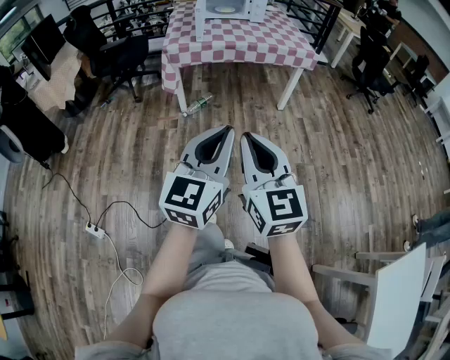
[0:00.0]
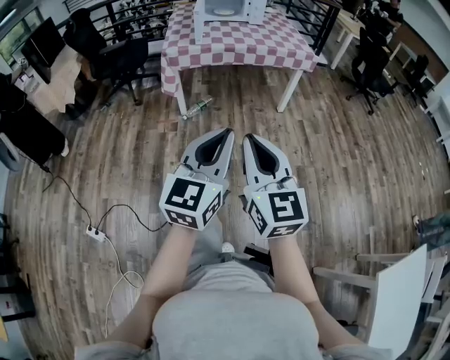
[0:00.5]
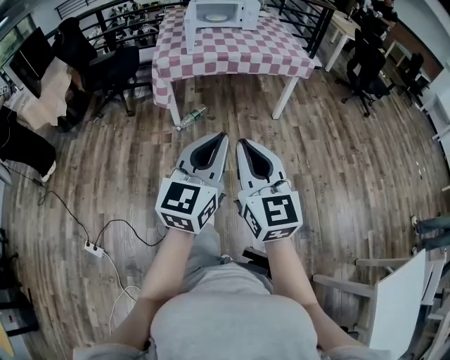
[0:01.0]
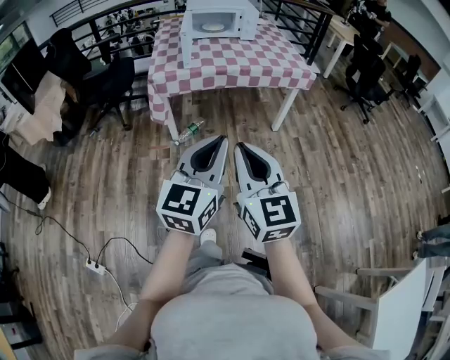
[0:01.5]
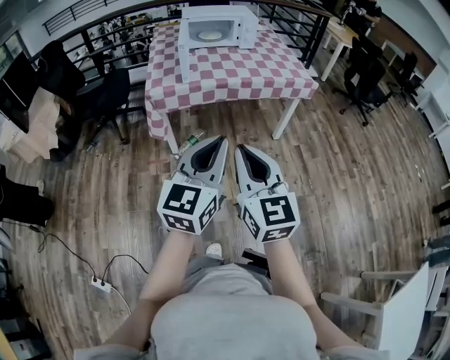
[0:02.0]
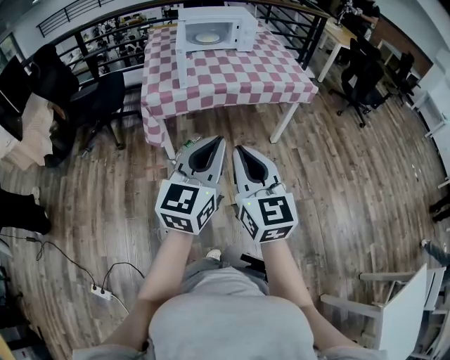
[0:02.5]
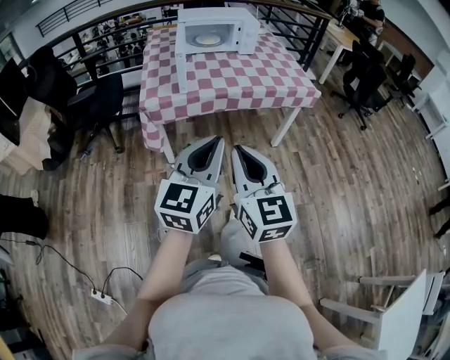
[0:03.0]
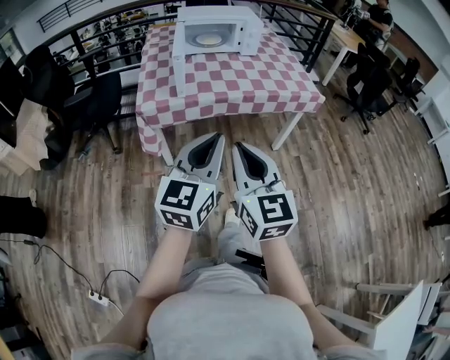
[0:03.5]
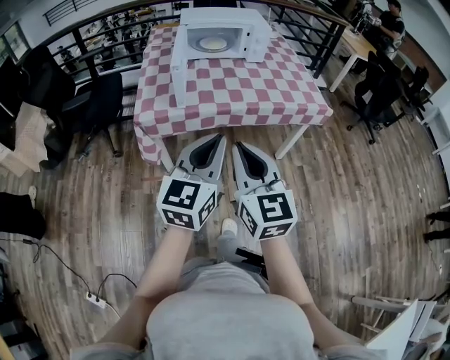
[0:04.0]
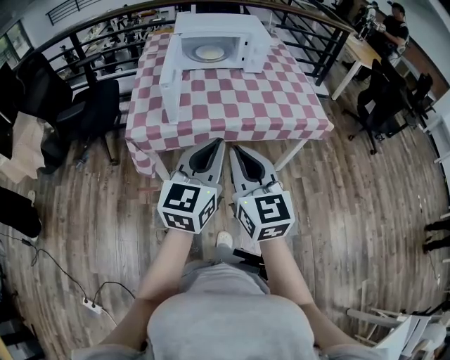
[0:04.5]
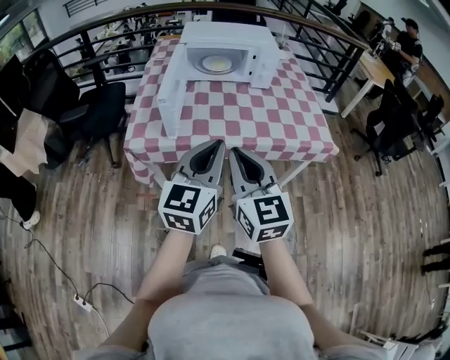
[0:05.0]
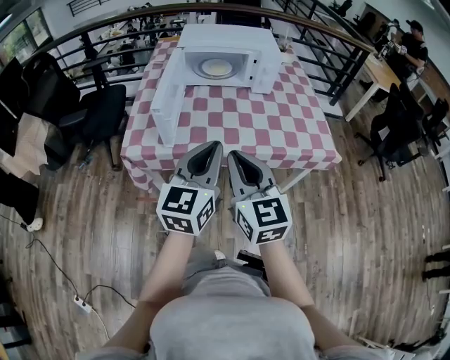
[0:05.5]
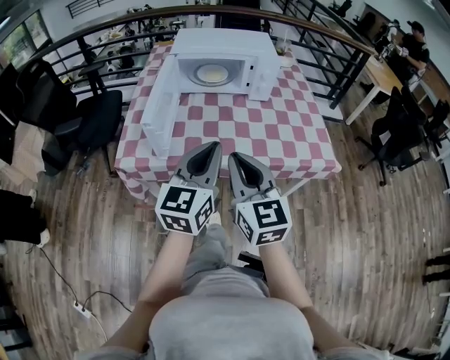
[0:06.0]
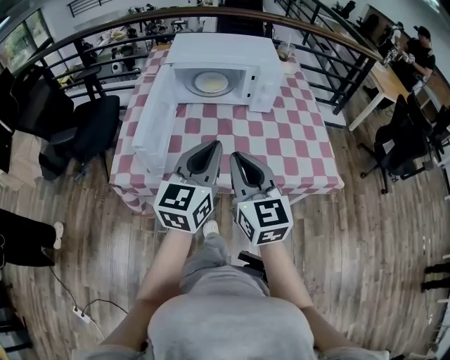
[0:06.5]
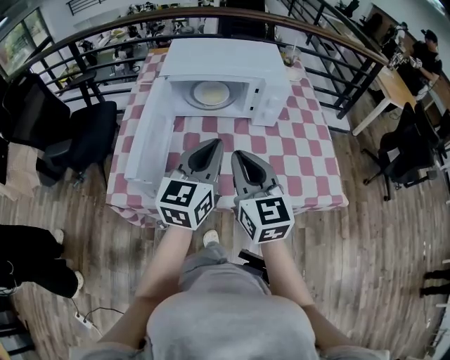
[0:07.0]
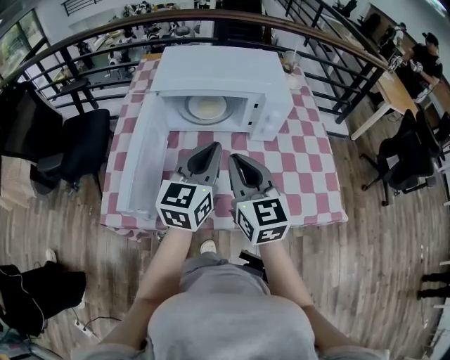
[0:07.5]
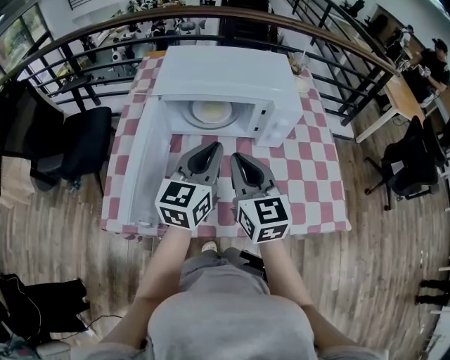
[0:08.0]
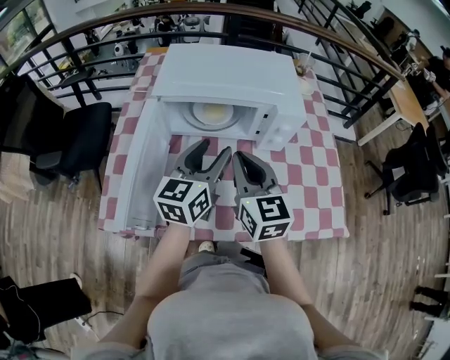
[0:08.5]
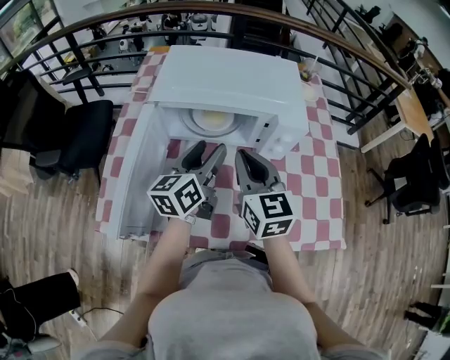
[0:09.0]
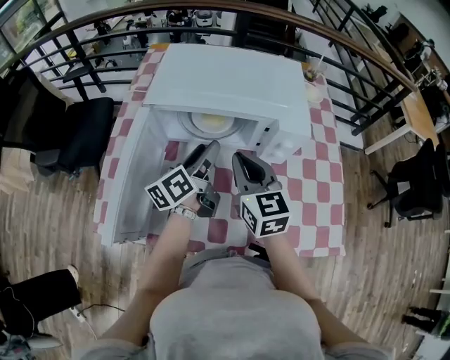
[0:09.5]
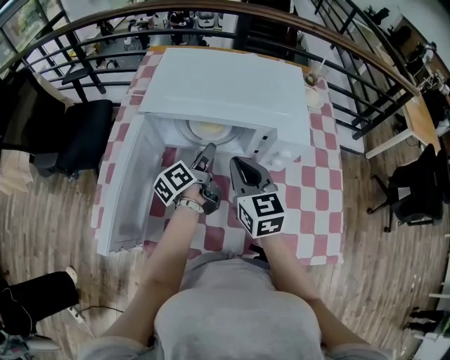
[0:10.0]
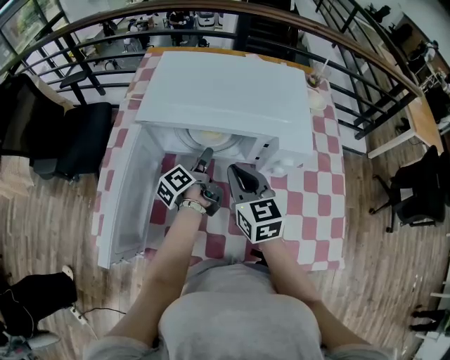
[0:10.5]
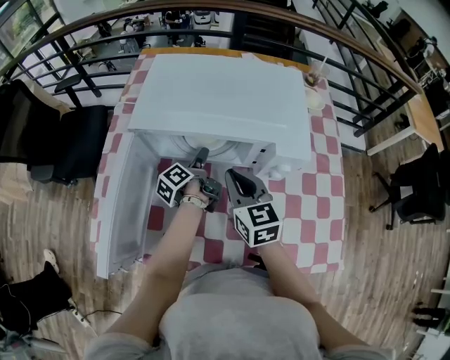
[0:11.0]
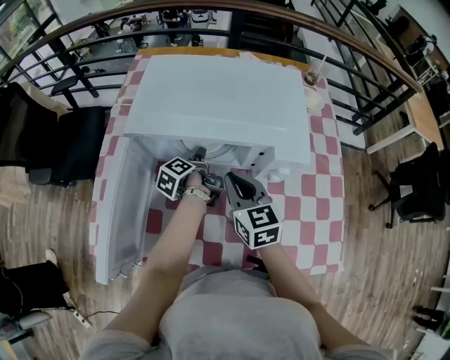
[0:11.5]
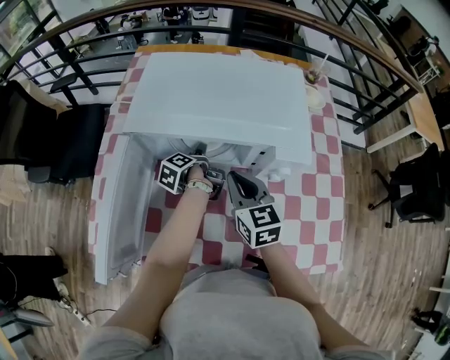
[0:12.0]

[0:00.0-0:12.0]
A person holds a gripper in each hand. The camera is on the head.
0.0 to 2.0 s: Both grippers travel together forward, about 25 cm.
2.0 to 4.0 s: Both grippers travel together forward, approximately 25 cm.
4.0 to 6.0 s: The grippers both shift forward by approximately 25 cm.
6.0 to 8.0 s: Both grippers travel together forward, approximately 30 cm.
8.0 to 10.0 s: The right gripper shifts about 15 cm forward and downward. The left gripper is displaced downward and forward by approximately 20 cm, rolls counterclockwise, seen from behind, by approximately 60 degrees, and opens.
10.0 to 12.0 s: The right gripper moves some 5 cm, while the left gripper travels downward and forward by about 10 cm, and swivels roughly 30 degrees.

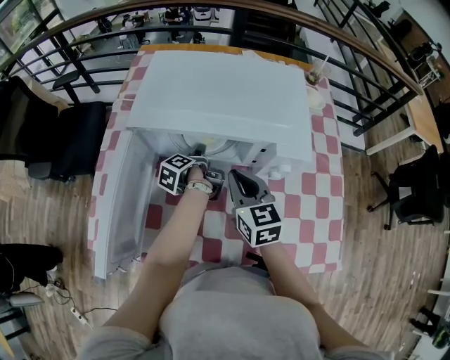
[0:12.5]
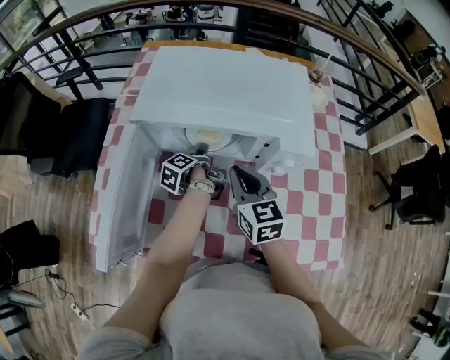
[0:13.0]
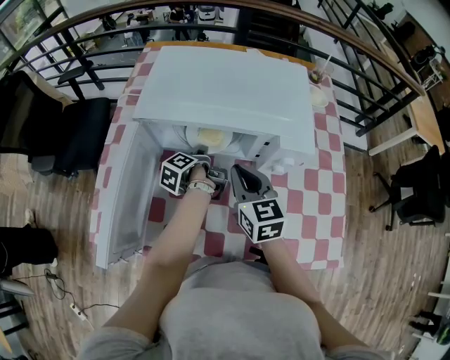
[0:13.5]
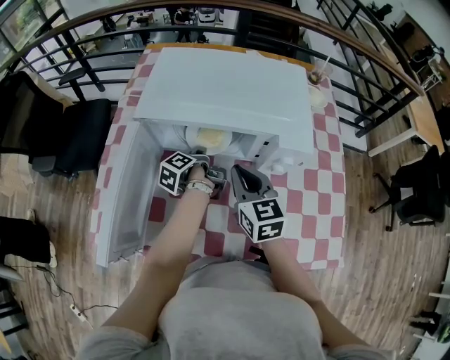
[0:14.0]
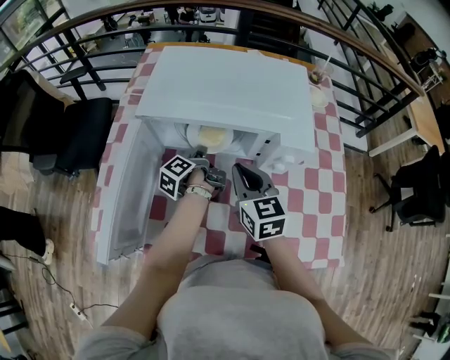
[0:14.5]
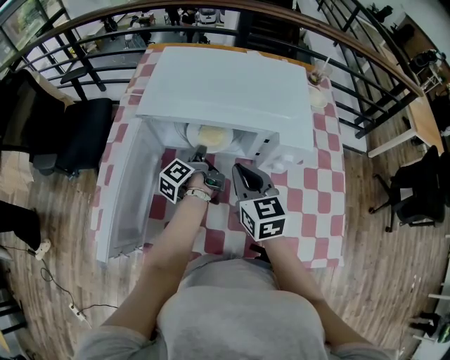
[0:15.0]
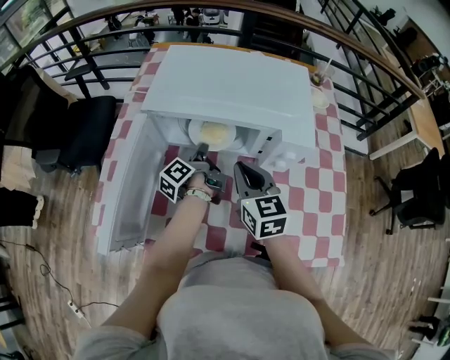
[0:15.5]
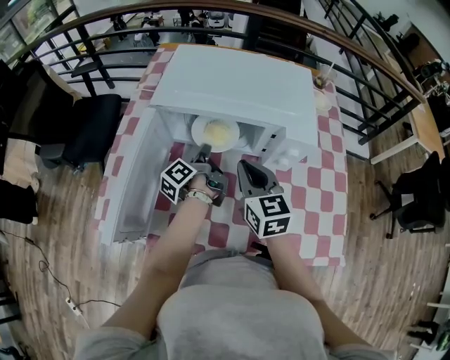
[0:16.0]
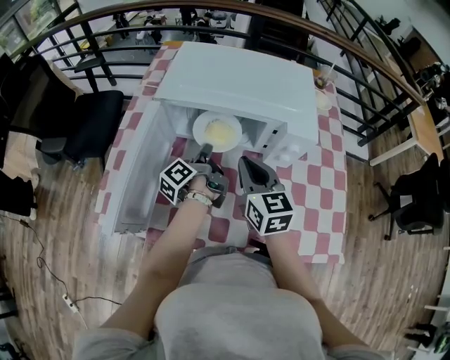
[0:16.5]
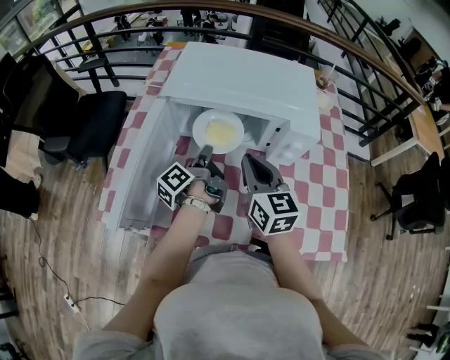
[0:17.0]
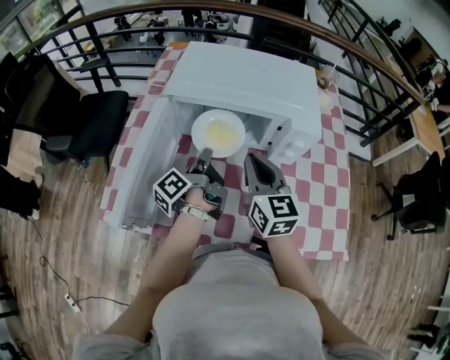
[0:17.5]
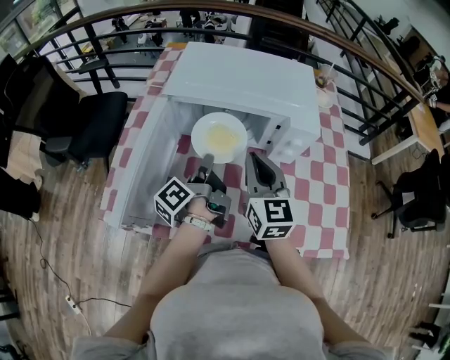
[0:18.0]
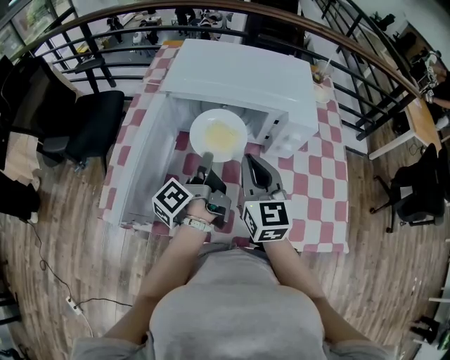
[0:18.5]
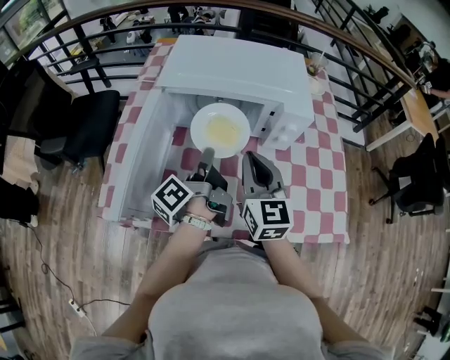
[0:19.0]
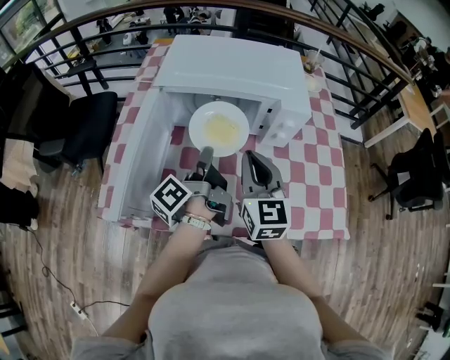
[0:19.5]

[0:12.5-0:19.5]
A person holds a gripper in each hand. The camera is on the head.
12.5 to 14.5 s: The left gripper closes.
14.5 to 16.0 s: The left gripper changes place by approximately 5 cm.
16.0 to 17.5 s: The left gripper moves backward and upward, about 10 cm.
17.5 to 19.5 s: The right gripper changes place by some 5 cm; the left gripper moves backward, some 5 cm.

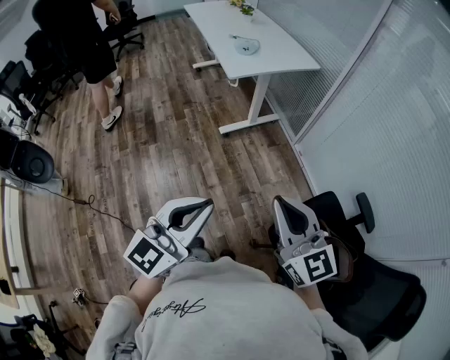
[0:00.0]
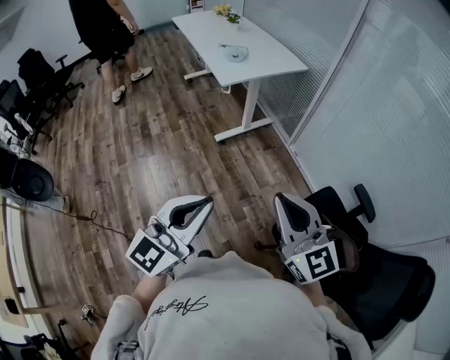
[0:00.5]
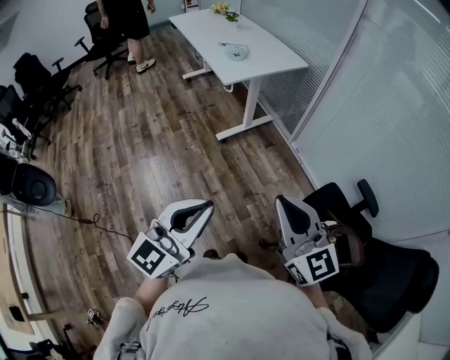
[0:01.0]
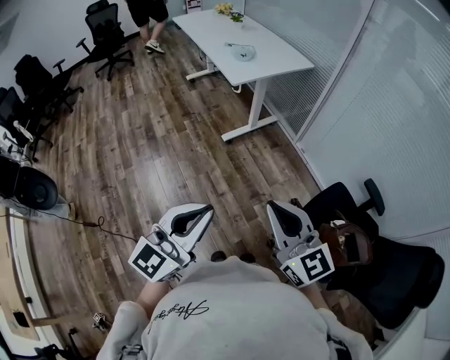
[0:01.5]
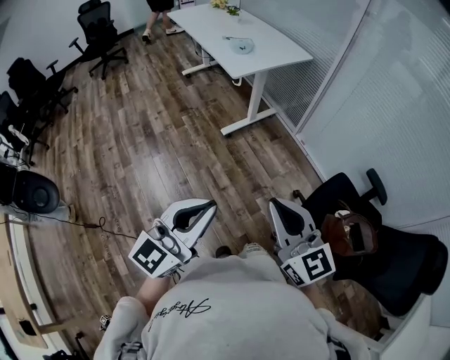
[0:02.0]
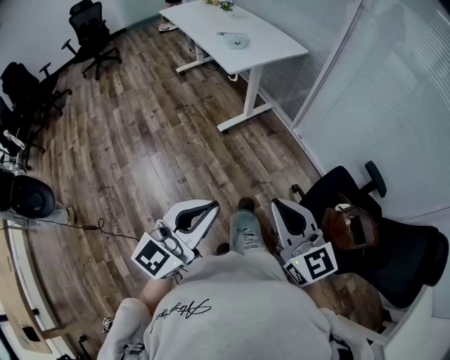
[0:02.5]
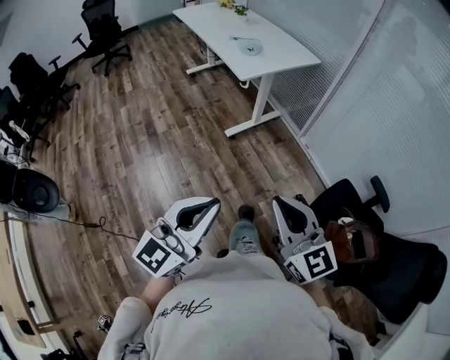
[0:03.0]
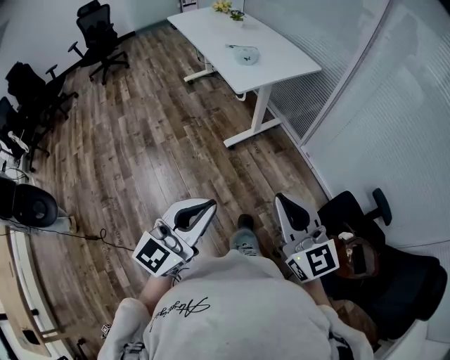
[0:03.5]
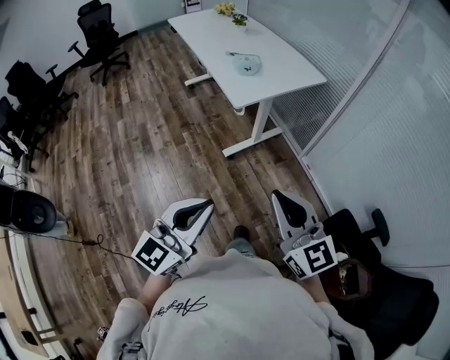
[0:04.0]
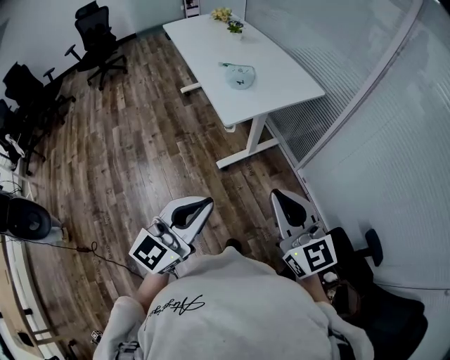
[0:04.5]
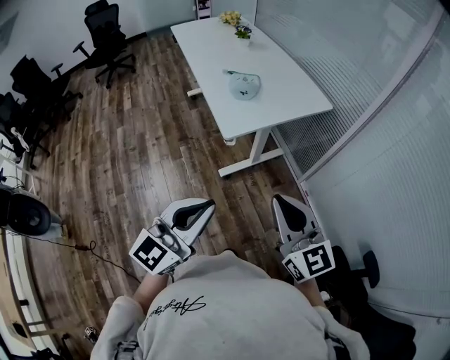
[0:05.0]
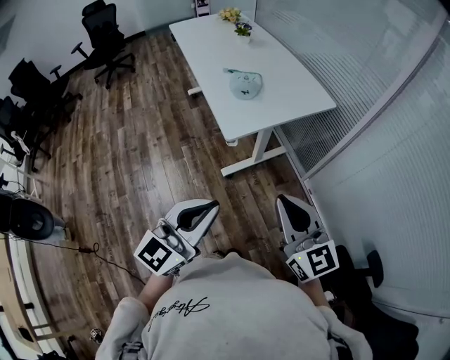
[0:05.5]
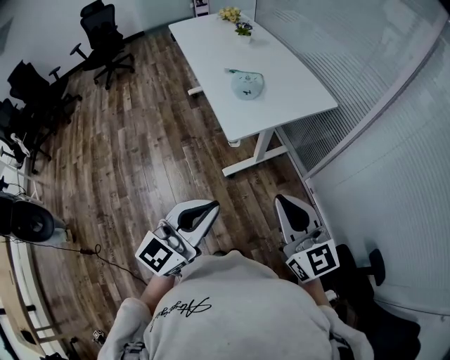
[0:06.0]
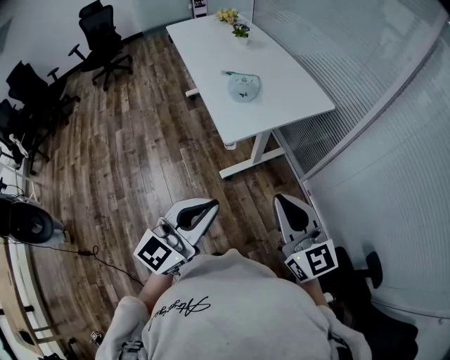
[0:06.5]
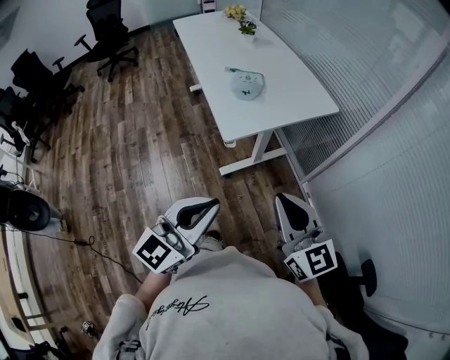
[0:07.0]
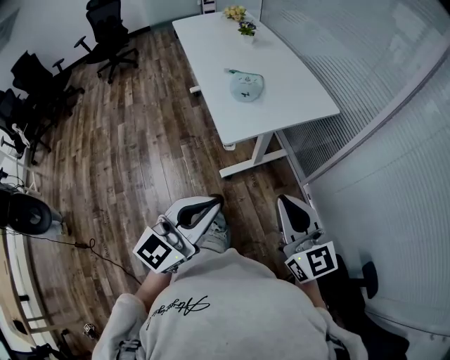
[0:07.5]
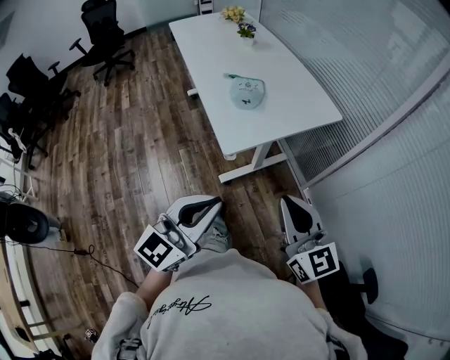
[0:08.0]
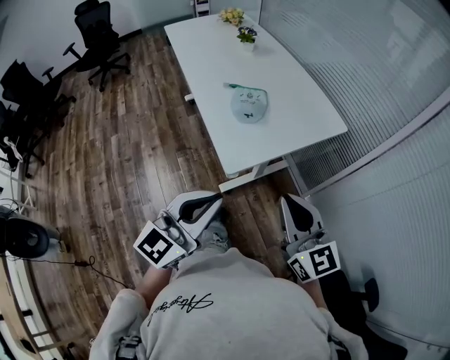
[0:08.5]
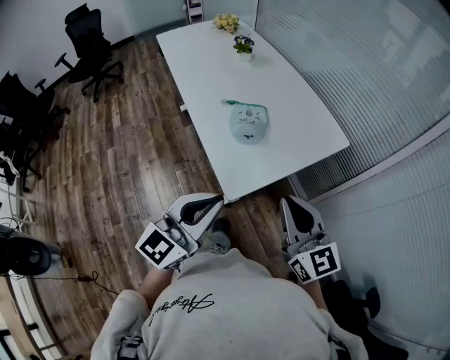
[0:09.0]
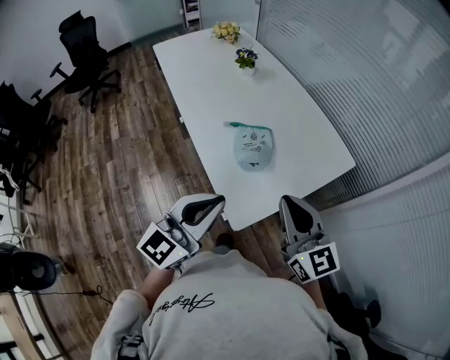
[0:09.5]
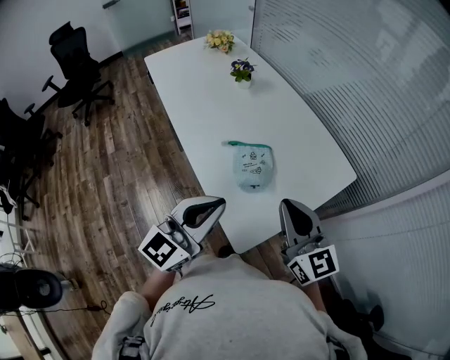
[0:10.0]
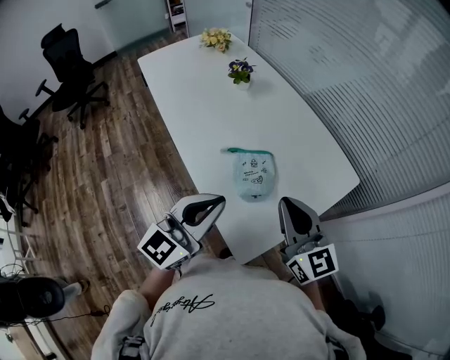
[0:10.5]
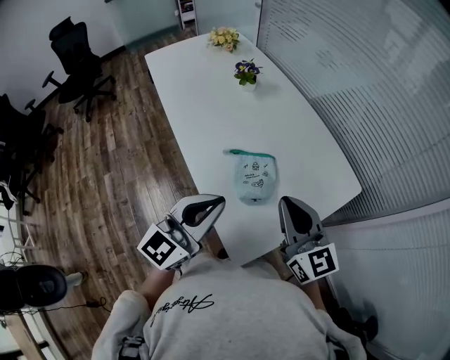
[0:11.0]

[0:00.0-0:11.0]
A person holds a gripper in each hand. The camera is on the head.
0.0 to 2.0 s: The left gripper is displaced to the left by approximately 10 cm, while the right gripper is displaced to the left and backward by approximately 15 cm.
2.0 to 3.5 s: Both grippers travel together forward, approximately 10 cm.
3.5 to 5.5 s: Both grippers move forward, approximately 25 cm.
5.5 to 7.5 s: There are only small adjustments of the grippers.
7.5 to 9.0 s: The grippers both shift forward by some 20 cm.
9.0 to 11.0 s: The grippers both shift forward by about 20 cm.
